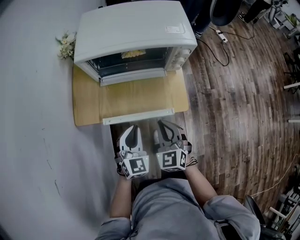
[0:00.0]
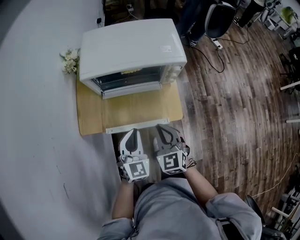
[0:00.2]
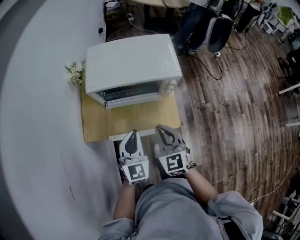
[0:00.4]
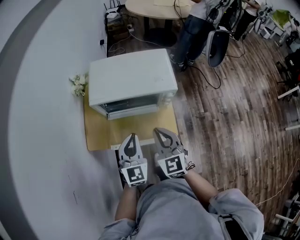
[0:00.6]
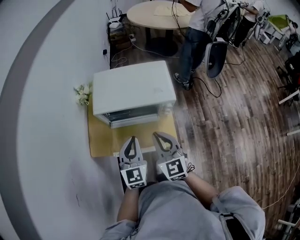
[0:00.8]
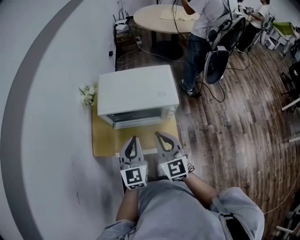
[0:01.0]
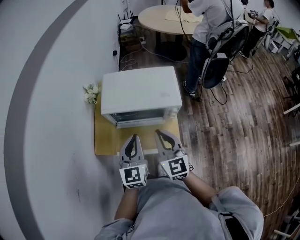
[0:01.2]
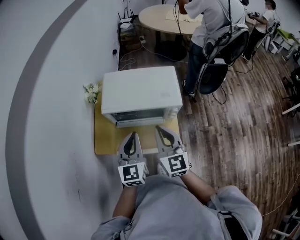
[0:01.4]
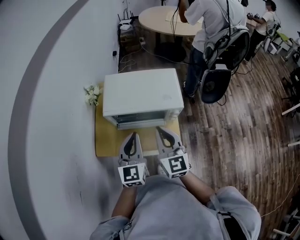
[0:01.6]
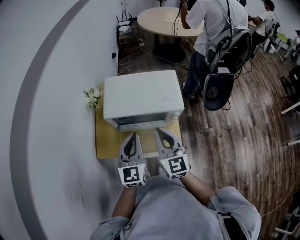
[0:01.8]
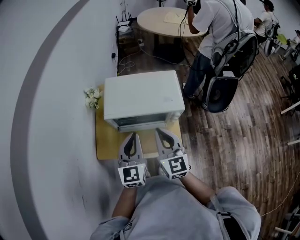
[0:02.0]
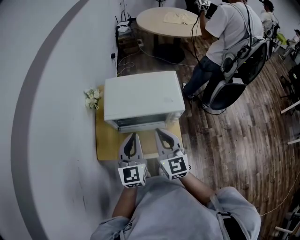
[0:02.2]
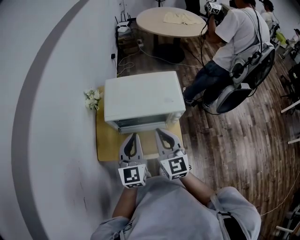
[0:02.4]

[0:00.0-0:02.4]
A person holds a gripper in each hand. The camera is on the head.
0:00.0 to 0:01.2: Both grippers travel together upward, roughly 25 cm. The right gripper rotates about 30 degrees; the left gripper rotates some 30 degrees.
0:01.2 to 0:02.4: The grippers move only a little.

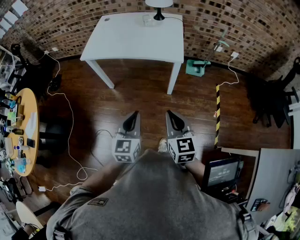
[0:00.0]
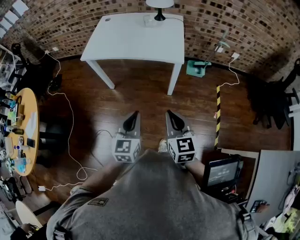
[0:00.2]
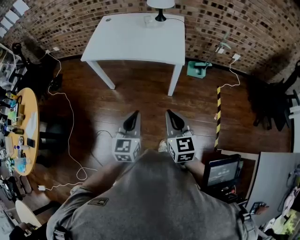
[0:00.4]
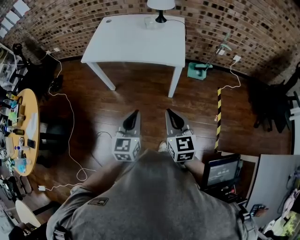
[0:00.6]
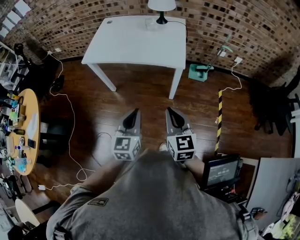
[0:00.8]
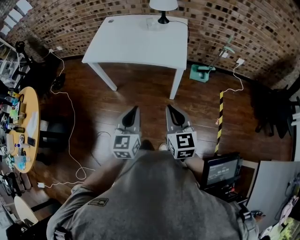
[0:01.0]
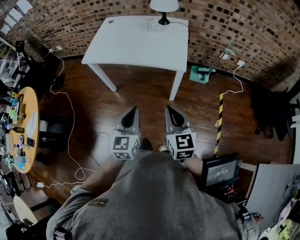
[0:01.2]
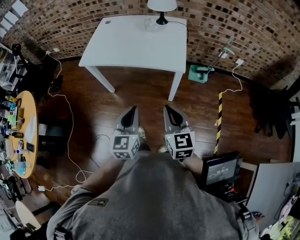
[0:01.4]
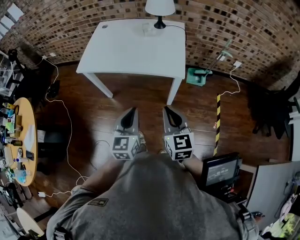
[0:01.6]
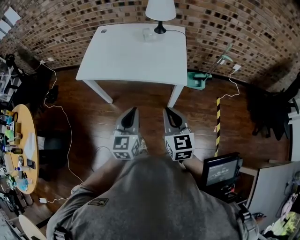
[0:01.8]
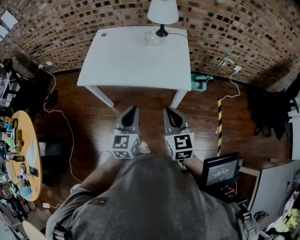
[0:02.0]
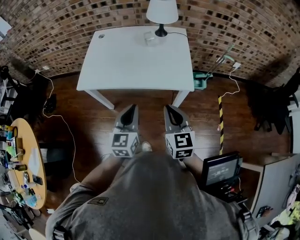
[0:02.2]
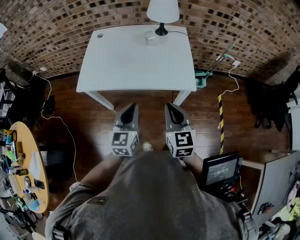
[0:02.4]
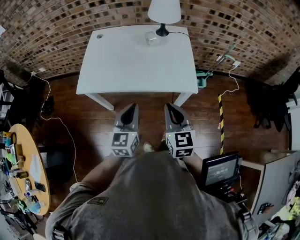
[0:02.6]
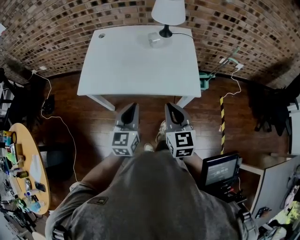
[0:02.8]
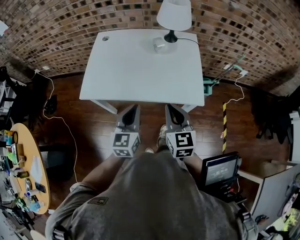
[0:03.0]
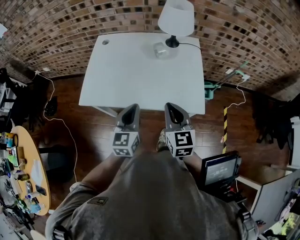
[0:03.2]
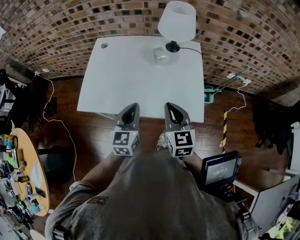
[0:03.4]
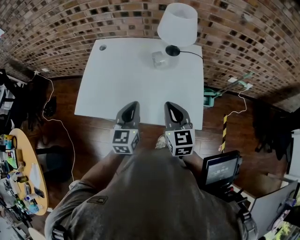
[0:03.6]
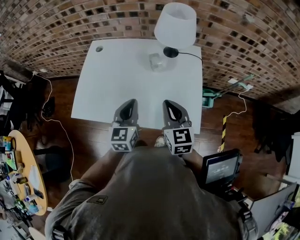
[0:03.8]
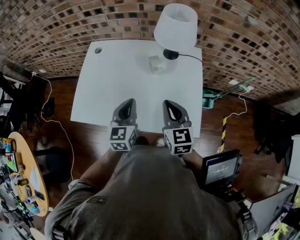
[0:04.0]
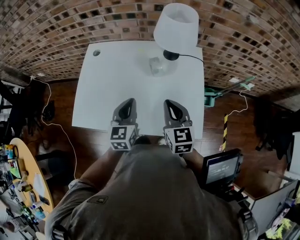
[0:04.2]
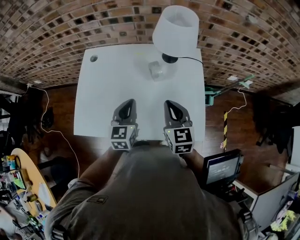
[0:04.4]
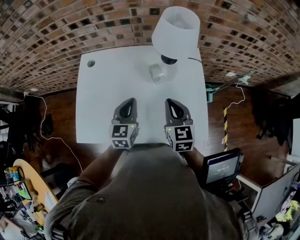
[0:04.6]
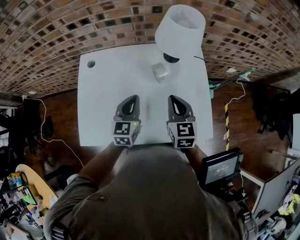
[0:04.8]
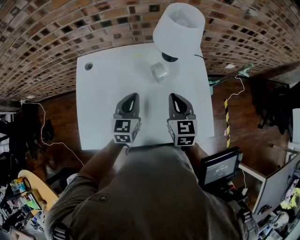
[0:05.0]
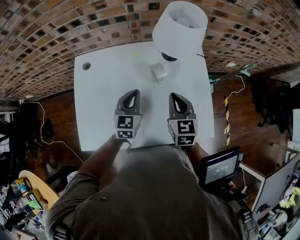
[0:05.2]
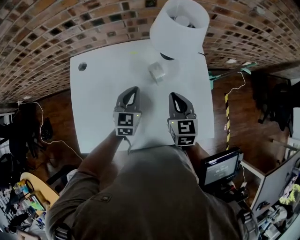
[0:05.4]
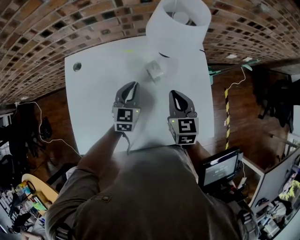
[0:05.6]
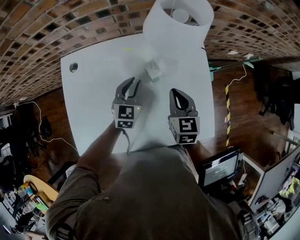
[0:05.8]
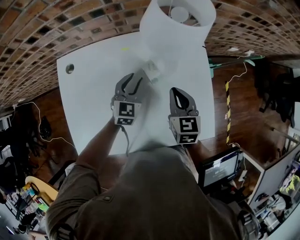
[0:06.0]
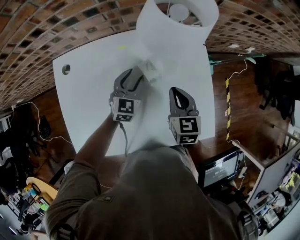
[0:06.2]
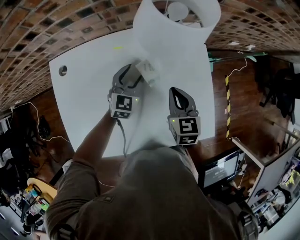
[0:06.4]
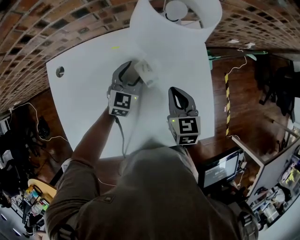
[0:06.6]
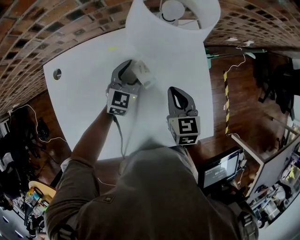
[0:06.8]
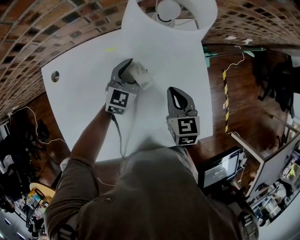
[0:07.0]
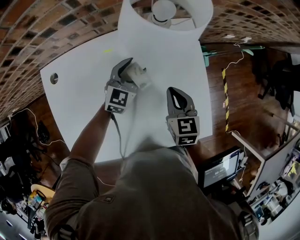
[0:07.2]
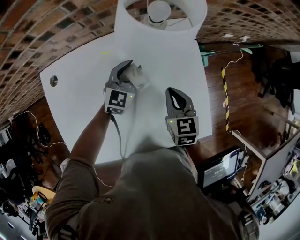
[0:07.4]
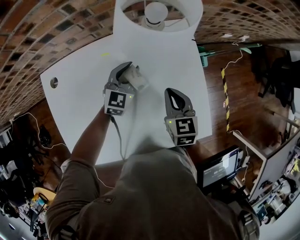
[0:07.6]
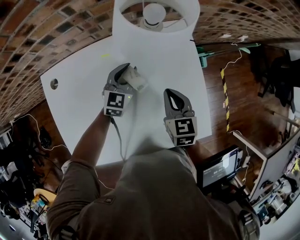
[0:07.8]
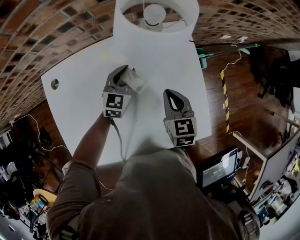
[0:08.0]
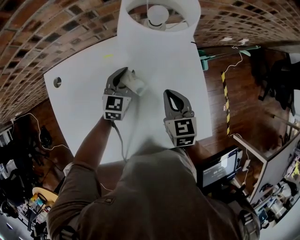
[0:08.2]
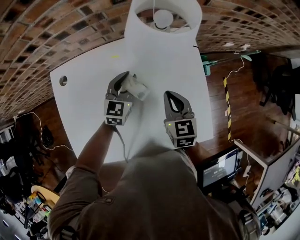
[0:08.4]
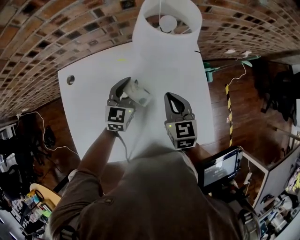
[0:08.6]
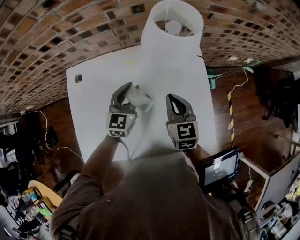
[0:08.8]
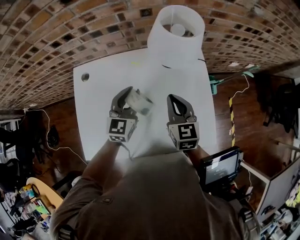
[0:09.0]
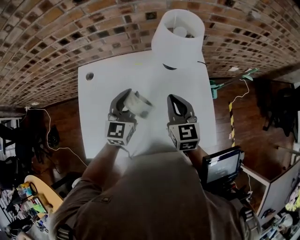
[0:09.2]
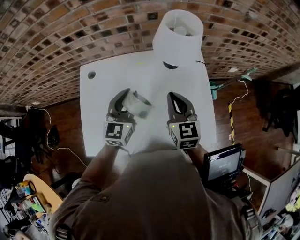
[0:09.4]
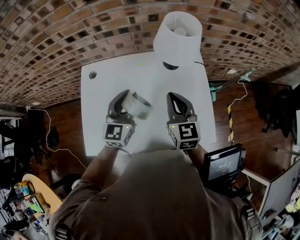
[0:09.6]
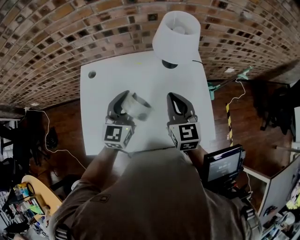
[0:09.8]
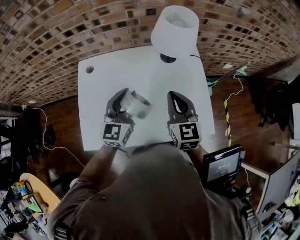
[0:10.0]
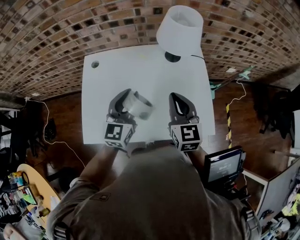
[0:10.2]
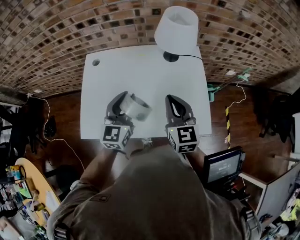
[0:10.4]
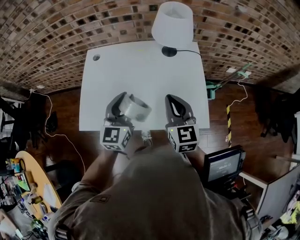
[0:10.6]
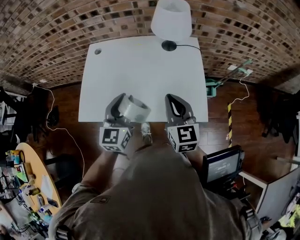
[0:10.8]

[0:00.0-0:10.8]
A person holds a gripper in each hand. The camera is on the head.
0:00.0 to 0:01.6: Both grippers move forward, roughly 15 cm.
0:01.6 to 0:03.0: Both grippers travel together forward and to the left, approximately 25 cm.
0:03.0 to 0:04.6: Both grippers travel together forward, about 25 cm.
0:04.6 to 0:06.2: The right gripper moves forward and downward, some 15 cm, while the left gripper shifts some 20 cm forward and downward, turns by approximately 30 degrees, and opens up.
0:06.2 to 0:07.8: The left gripper is displaced forward by some 5 cm, and closes its fingers.
0:07.8 to 0:09.2: The right gripper travels upward and to the left by approximately 15 cm, while the left gripper is displaced upward, backward and to the left by some 25 cm, and swivels approximately 20 degrees.
0:09.2 to 0:10.8: Both grippers move backward, about 20 cm.

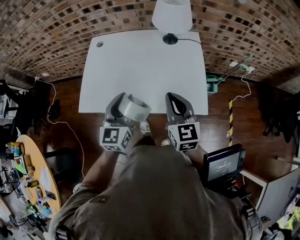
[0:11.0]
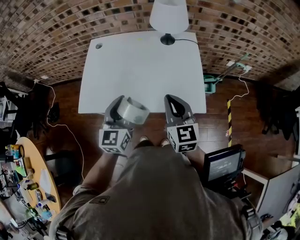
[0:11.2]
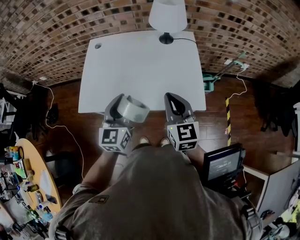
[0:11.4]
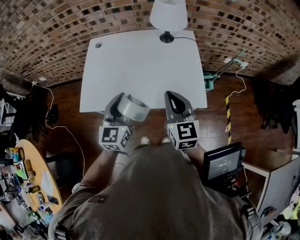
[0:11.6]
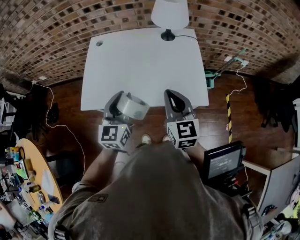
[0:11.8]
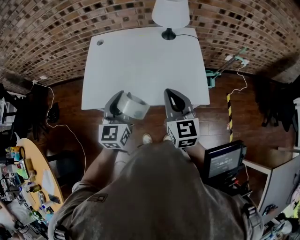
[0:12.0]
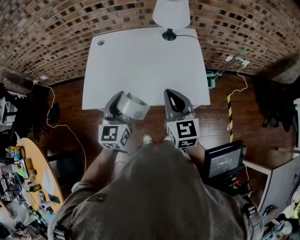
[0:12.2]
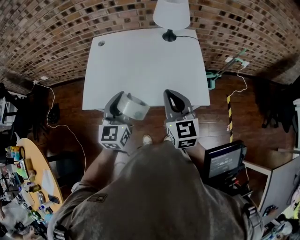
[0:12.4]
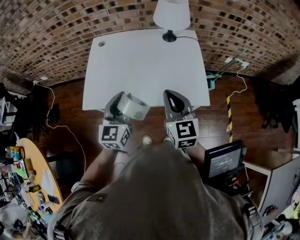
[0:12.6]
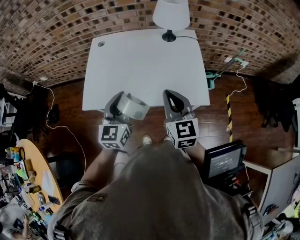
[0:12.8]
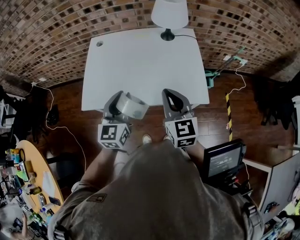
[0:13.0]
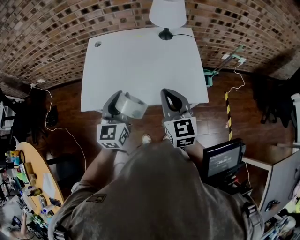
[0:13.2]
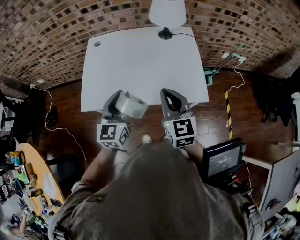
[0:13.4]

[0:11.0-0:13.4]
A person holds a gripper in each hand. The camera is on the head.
0:11.0 to 0:12.2: The right gripper shifts by approximately 5 cm, while the left gripper ends up roughly 5 cm from where it was.
0:12.2 to 0:13.4: Both grippers stay put.

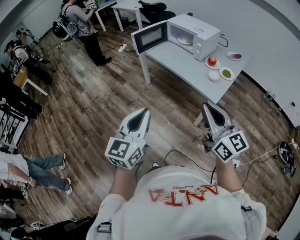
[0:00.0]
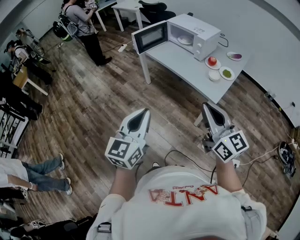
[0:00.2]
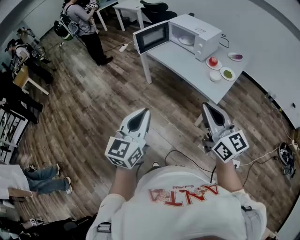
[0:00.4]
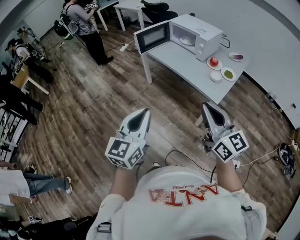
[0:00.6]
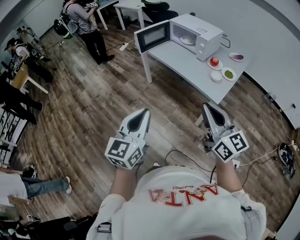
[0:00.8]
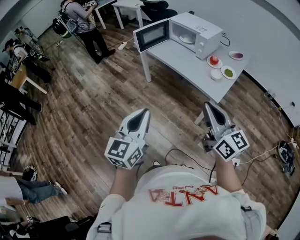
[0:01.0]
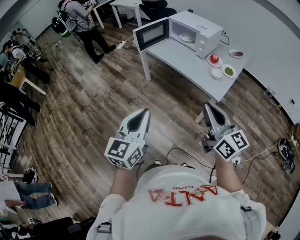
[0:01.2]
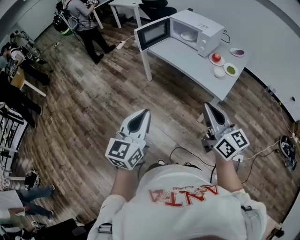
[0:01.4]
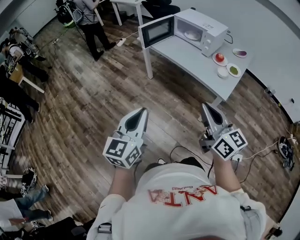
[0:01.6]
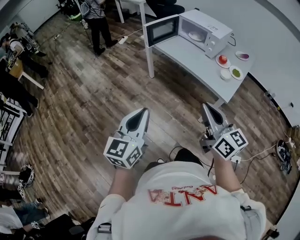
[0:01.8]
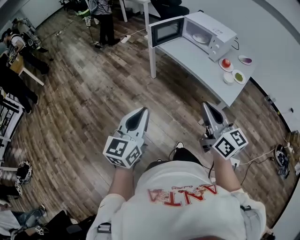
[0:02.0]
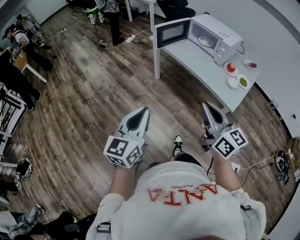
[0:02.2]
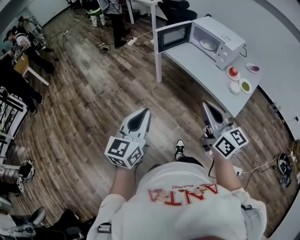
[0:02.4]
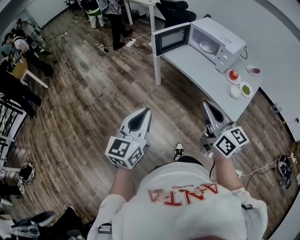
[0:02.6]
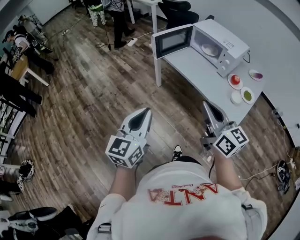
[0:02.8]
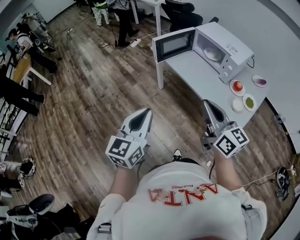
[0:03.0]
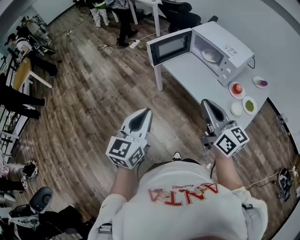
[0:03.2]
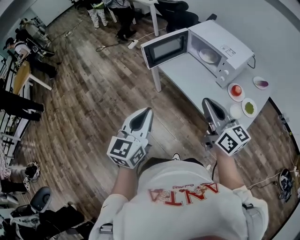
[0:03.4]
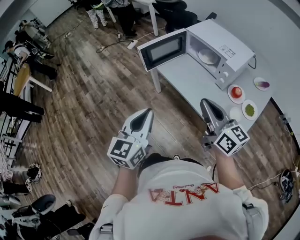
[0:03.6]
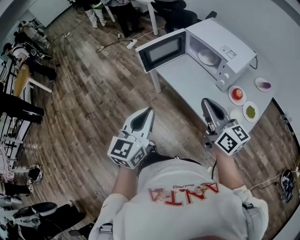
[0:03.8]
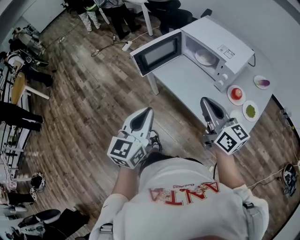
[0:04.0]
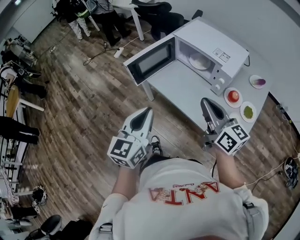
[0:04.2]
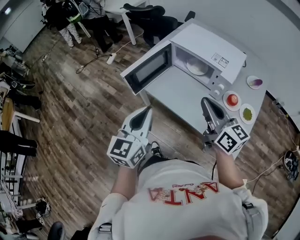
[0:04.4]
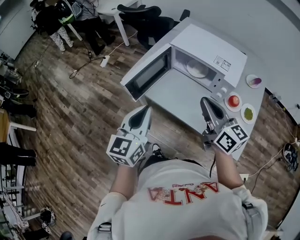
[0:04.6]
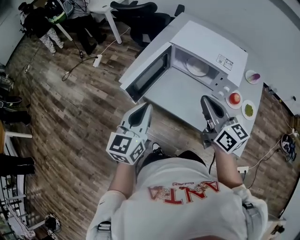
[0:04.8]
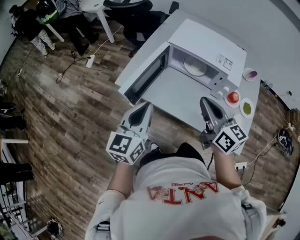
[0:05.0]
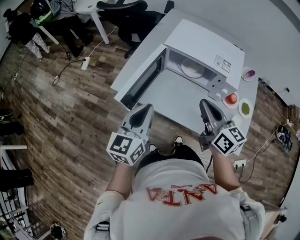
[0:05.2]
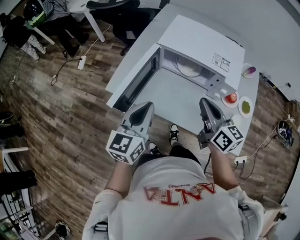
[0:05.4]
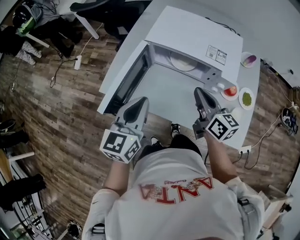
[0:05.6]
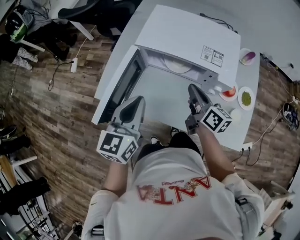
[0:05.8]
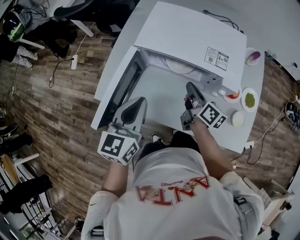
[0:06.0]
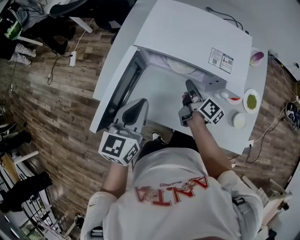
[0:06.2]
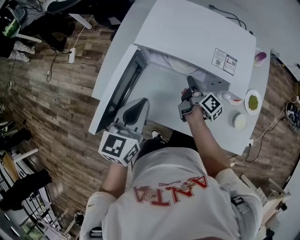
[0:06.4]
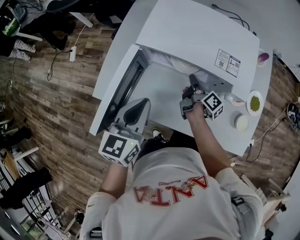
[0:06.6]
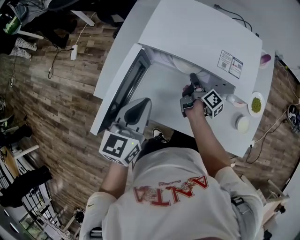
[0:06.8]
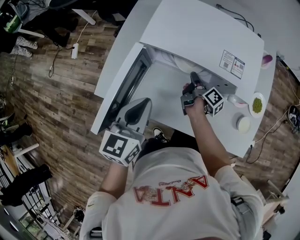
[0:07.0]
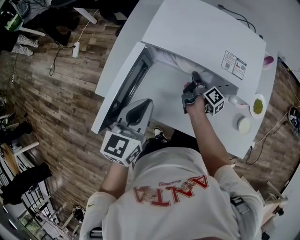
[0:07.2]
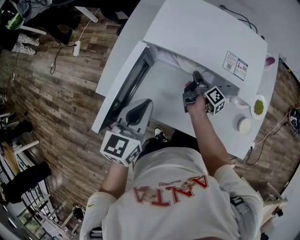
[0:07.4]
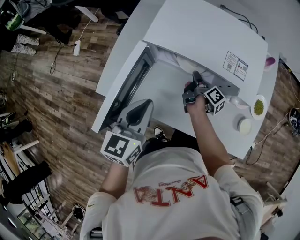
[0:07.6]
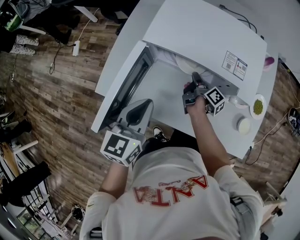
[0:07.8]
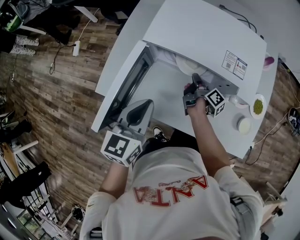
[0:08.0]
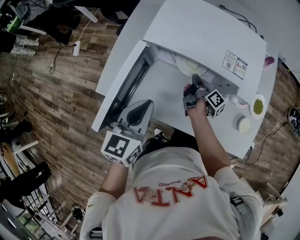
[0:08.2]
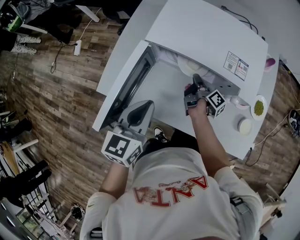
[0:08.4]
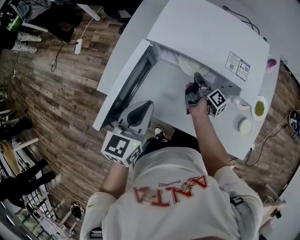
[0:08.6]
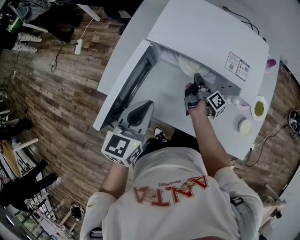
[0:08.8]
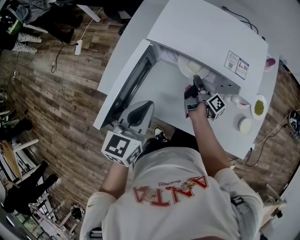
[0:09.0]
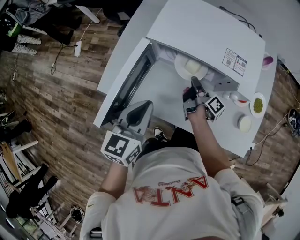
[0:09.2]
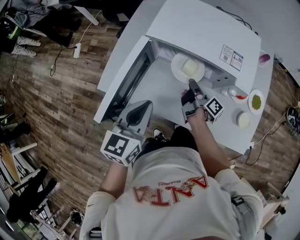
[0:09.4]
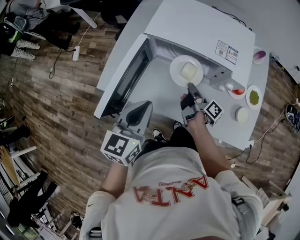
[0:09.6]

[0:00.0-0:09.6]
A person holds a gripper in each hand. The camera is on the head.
0:00.0 to 0:01.6: Both grippers travel together to the left, approximately 10 cm.
0:01.6 to 0:03.2: The two grippers go some 25 cm forward.
0:03.2 to 0:04.8: The grippers both shift forward by about 30 cm. The right gripper swivels roughly 20 degrees.
0:04.8 to 0:06.4: The left gripper heads forward and downward, covering some 20 cm. Meanwhile the right gripper travels downward and forward by some 35 cm, and rotates around the line of its fingers by approximately 60 degrees, clockwise from behind.
0:06.4 to 0:08.0: The grippers stay close to where they were, moving slightly.
0:08.0 to 0:09.6: The right gripper moves backward, about 10 cm. Meanwhile the left gripper goes approximately 5 cm backward.
